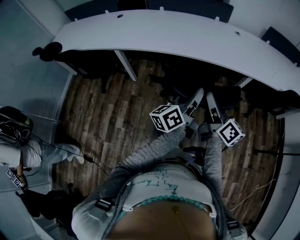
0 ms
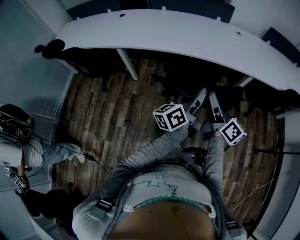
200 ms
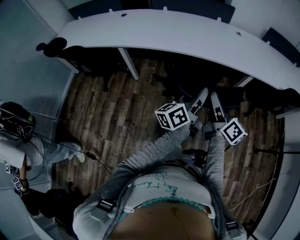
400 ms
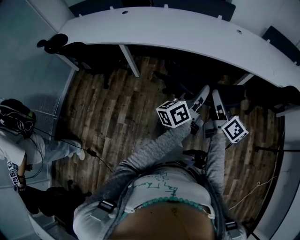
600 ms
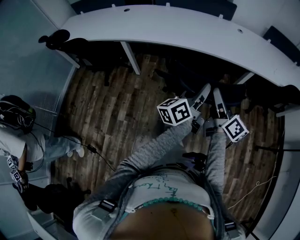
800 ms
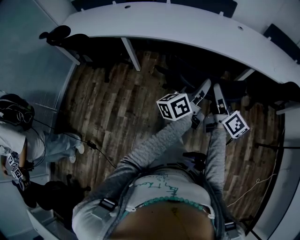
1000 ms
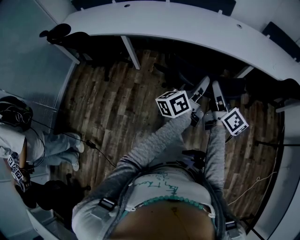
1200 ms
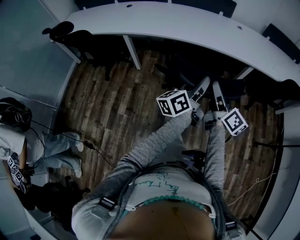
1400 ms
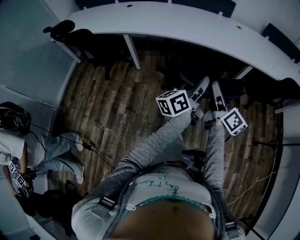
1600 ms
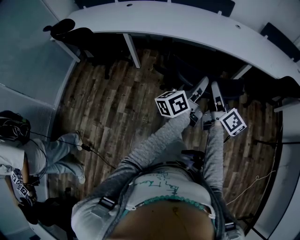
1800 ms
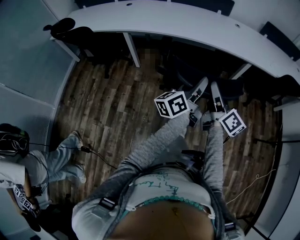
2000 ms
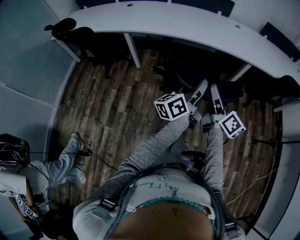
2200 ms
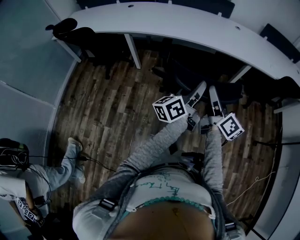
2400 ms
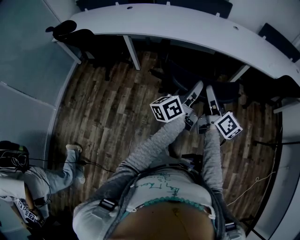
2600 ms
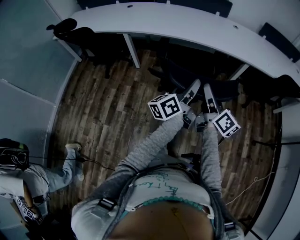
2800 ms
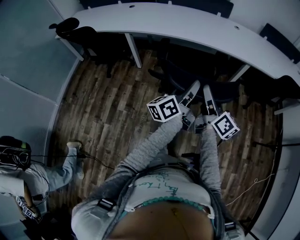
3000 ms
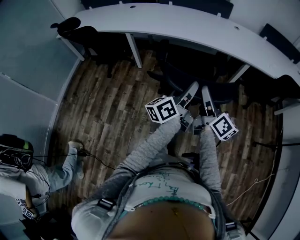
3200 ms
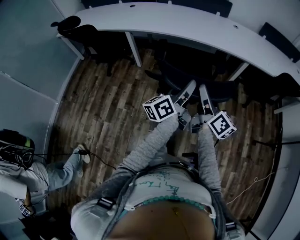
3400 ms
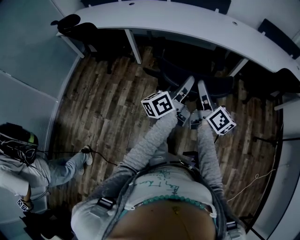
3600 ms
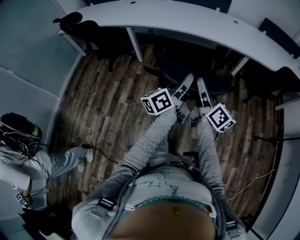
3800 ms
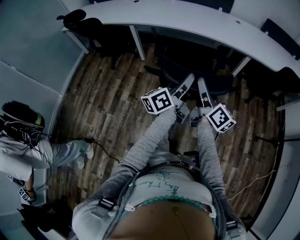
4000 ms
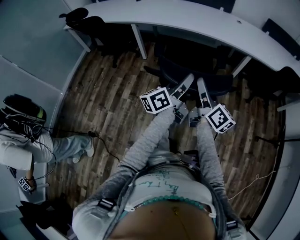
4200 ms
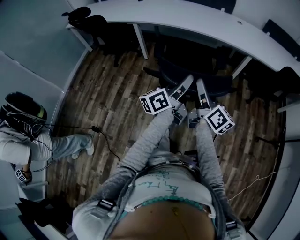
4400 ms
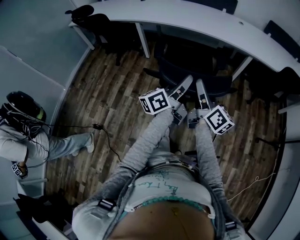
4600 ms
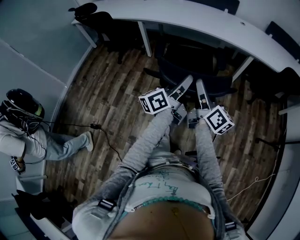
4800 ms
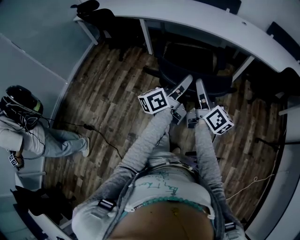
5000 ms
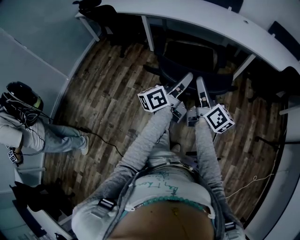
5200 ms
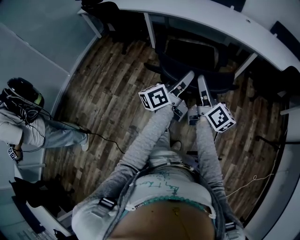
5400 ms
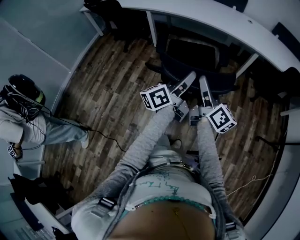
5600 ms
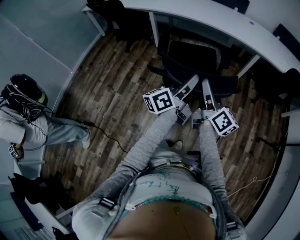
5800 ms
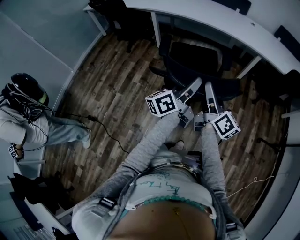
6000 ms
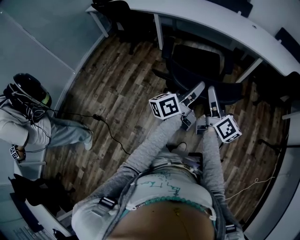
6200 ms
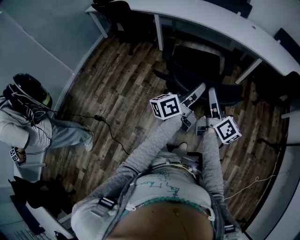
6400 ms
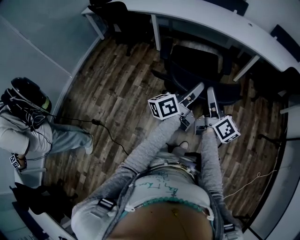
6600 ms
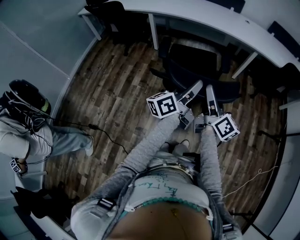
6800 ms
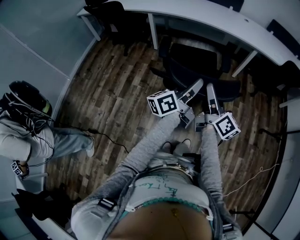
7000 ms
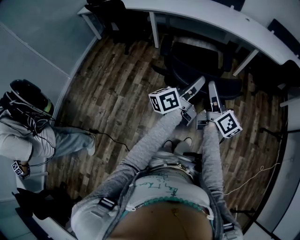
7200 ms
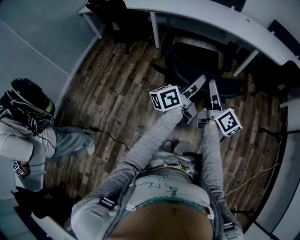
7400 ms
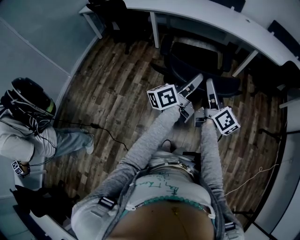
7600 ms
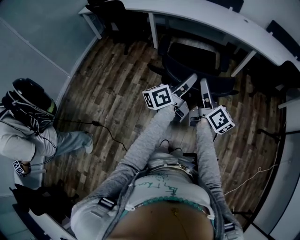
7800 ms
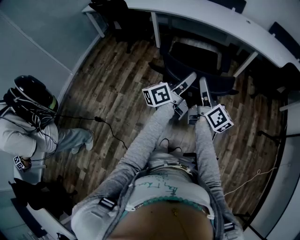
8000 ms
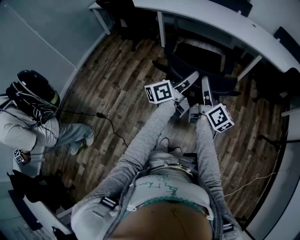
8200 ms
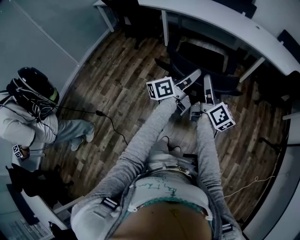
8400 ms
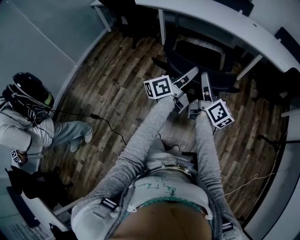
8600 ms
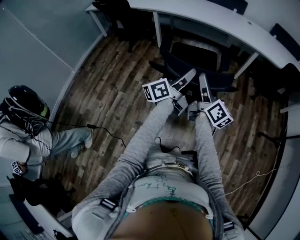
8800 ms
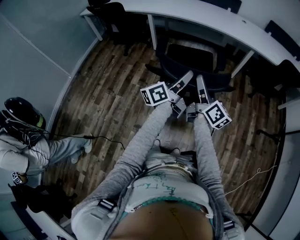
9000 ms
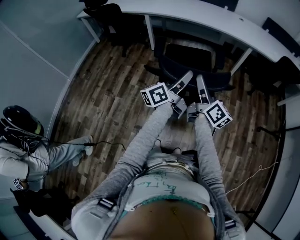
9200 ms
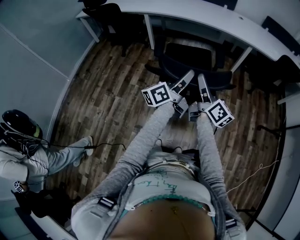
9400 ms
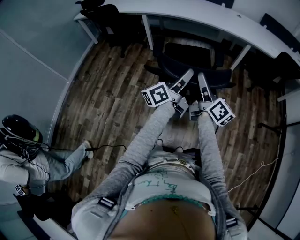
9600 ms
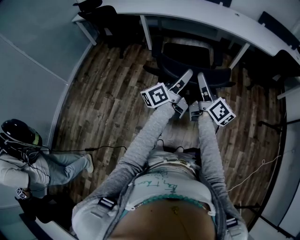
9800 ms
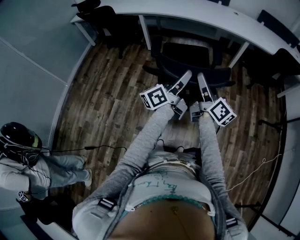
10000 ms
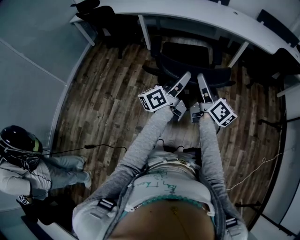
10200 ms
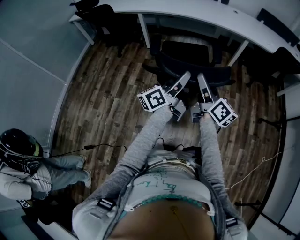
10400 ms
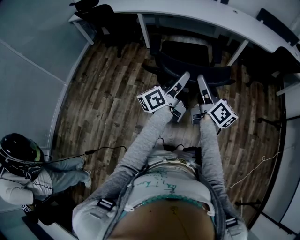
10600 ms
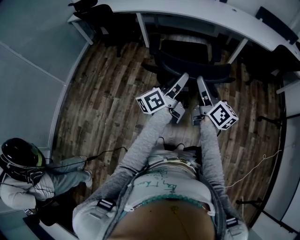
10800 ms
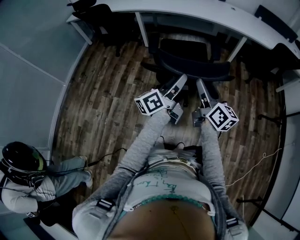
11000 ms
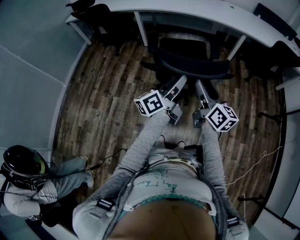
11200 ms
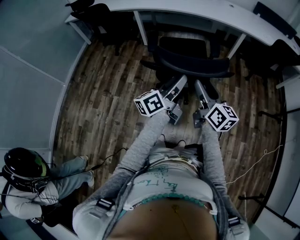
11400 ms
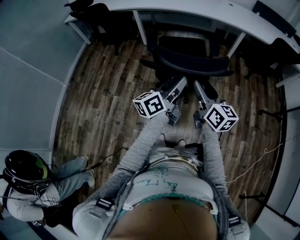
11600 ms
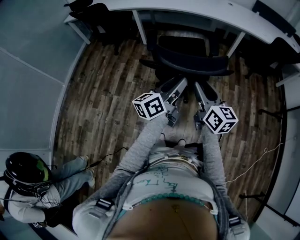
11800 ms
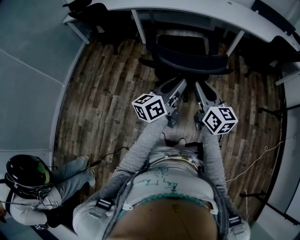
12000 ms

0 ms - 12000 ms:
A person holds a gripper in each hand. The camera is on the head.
0 ms - 1600 ms: Both grippers travel together backward, some 15 cm.
1600 ms - 3000 ms: Both grippers move backward, approximately 5 cm.
3000 ms - 4400 ms: The grippers both shift backward by about 10 cm.
4400 ms - 6000 ms: The two grippers go about 10 cm backward.
6000 ms - 7600 ms: The grippers both shift to the left and backward by approximately 10 cm.
7600 ms - 9000 ms: Both grippers stay put.
9000 ms - 10400 ms: Both grippers stay about where they are.
10400 ms - 12000 ms: The two grippers go roughly 5 cm backward. The right gripper changes its angle by some 30 degrees, and closes.

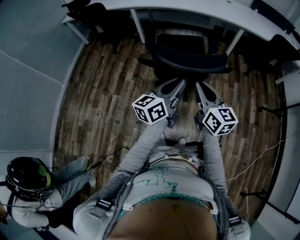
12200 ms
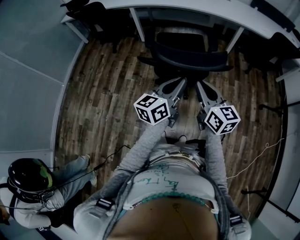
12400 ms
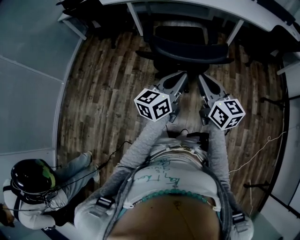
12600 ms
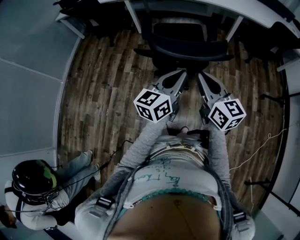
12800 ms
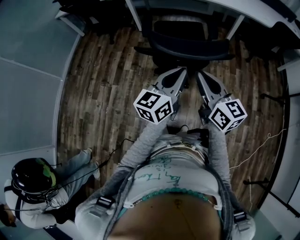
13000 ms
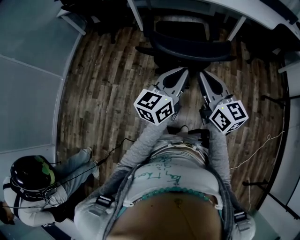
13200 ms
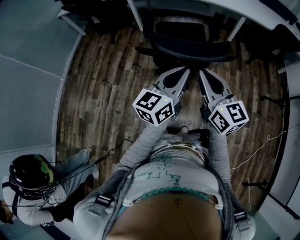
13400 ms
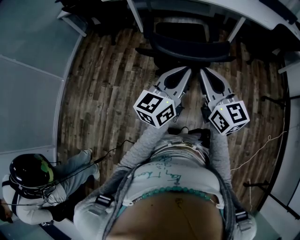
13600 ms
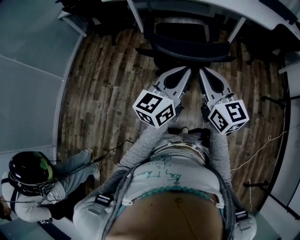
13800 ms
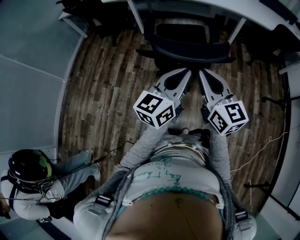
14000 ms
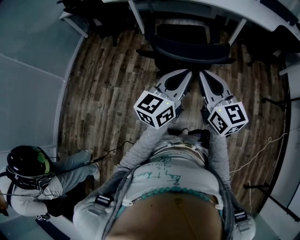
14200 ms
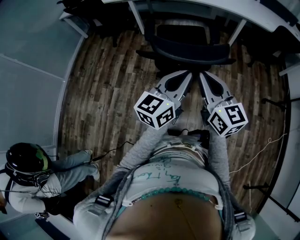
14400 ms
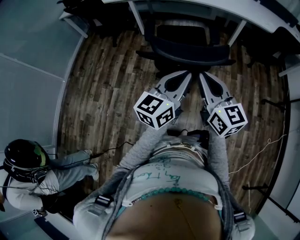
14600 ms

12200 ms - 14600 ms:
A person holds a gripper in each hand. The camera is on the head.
12200 ms - 13400 ms: The right gripper shifts by some 5 cm.
13400 ms - 14600 ms: Neither gripper changes place.

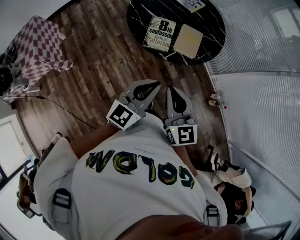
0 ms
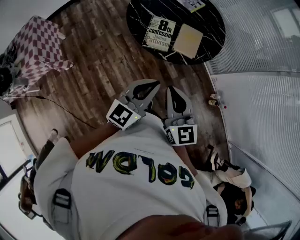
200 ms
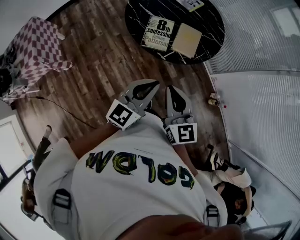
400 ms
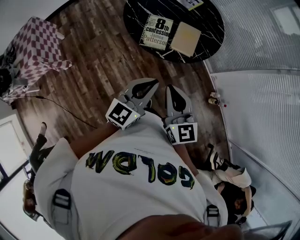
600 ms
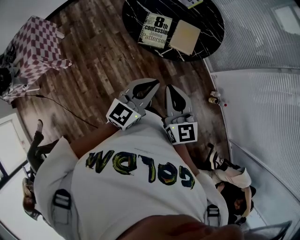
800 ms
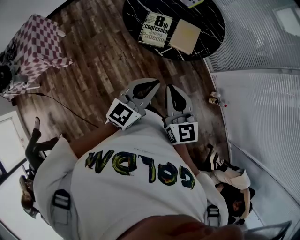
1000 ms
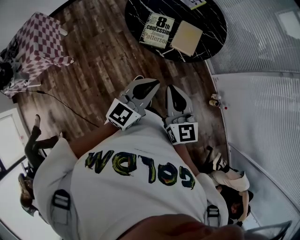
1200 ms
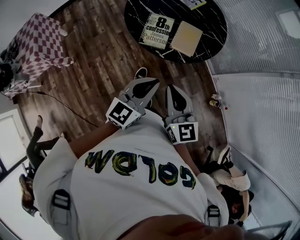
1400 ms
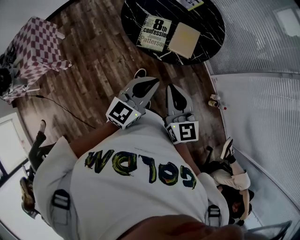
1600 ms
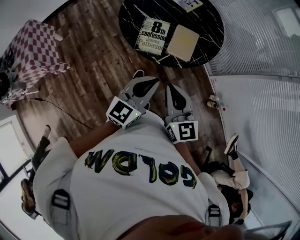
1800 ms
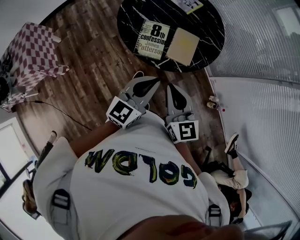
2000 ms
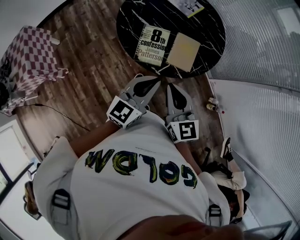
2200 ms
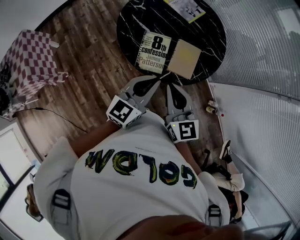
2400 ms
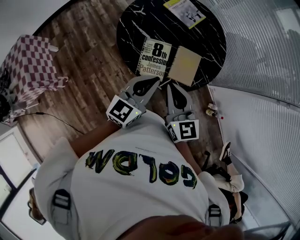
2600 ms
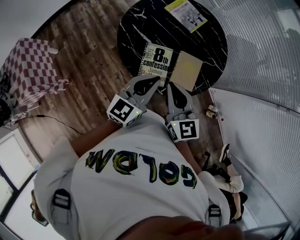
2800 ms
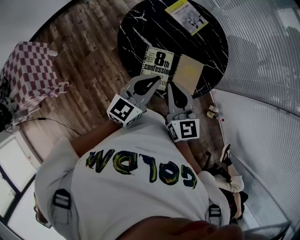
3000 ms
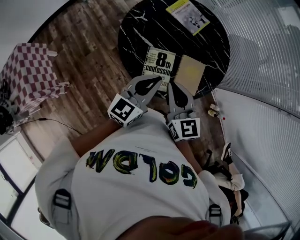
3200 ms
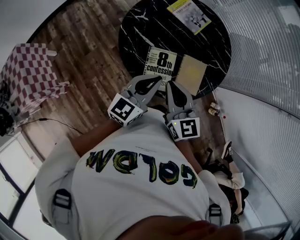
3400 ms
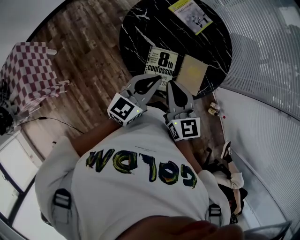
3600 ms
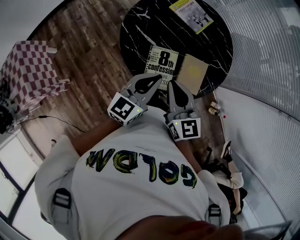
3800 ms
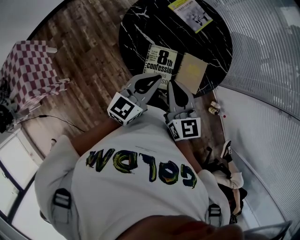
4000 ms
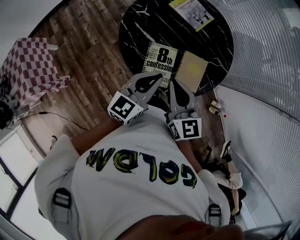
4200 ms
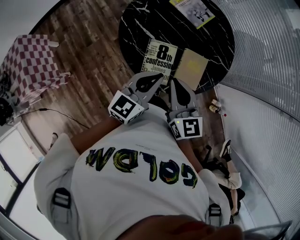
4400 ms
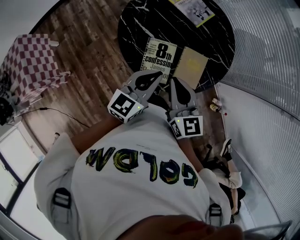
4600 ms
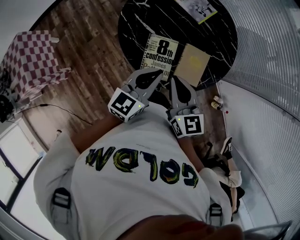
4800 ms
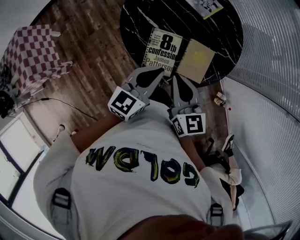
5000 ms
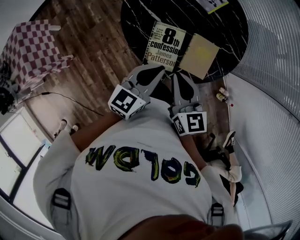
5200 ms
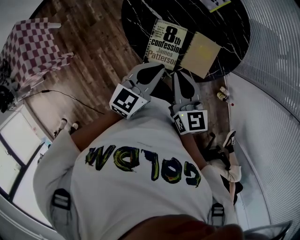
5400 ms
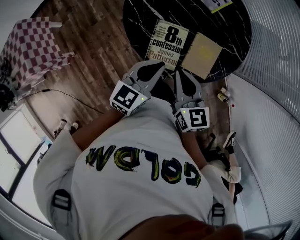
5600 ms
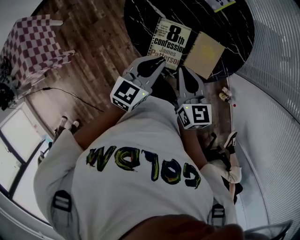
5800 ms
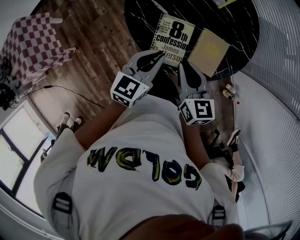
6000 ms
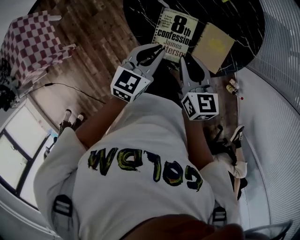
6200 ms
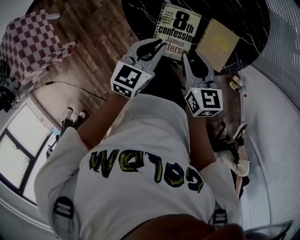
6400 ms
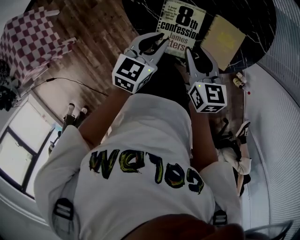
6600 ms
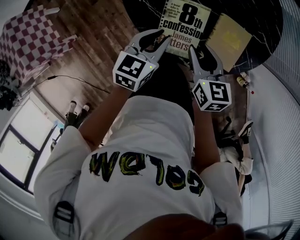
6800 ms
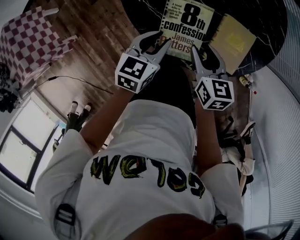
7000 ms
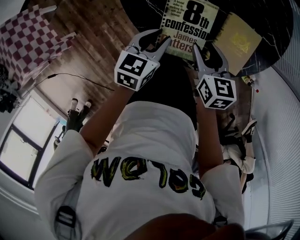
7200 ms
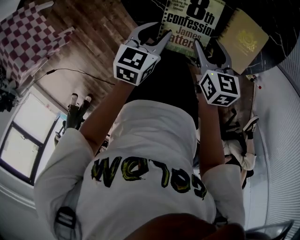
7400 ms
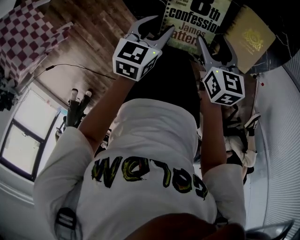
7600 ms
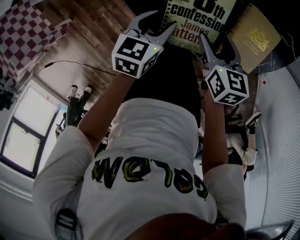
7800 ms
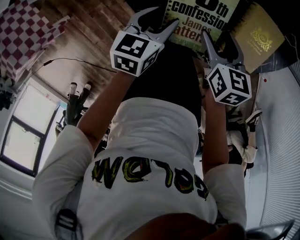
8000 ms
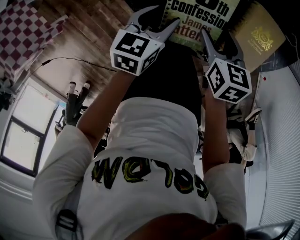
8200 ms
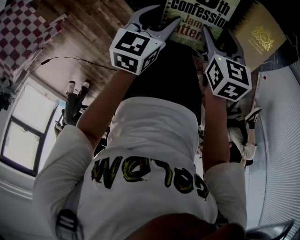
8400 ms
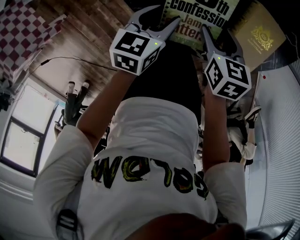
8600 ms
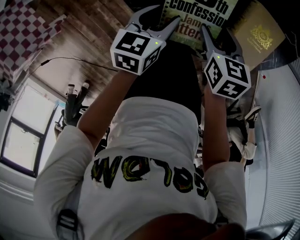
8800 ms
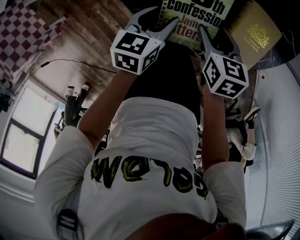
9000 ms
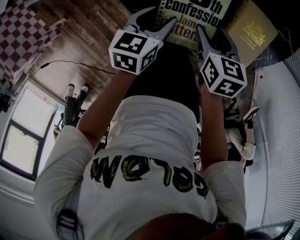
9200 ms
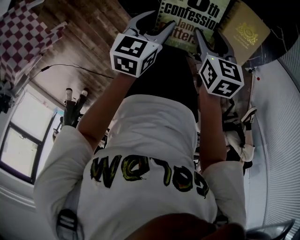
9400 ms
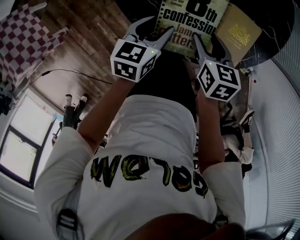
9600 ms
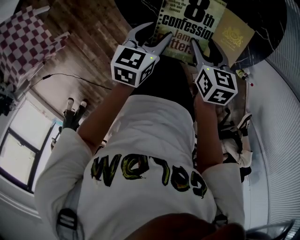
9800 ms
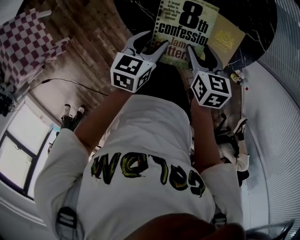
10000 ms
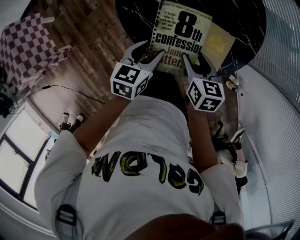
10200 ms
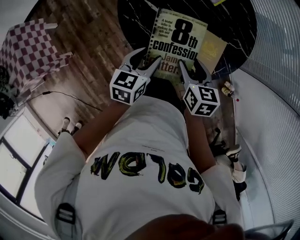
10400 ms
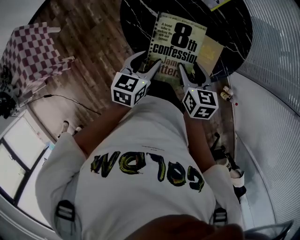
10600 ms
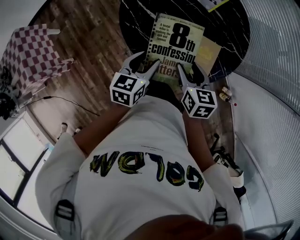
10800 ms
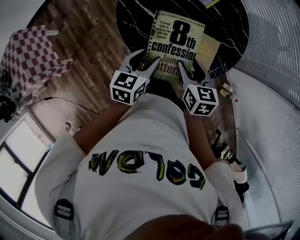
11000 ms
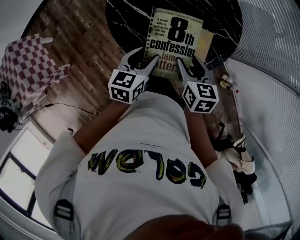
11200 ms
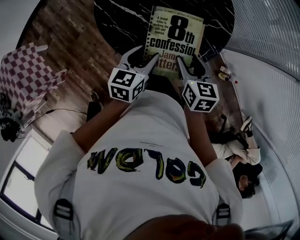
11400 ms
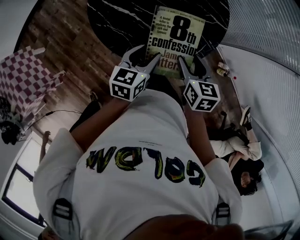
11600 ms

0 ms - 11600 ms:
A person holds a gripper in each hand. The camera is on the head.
0 ms - 1400 ms: The grippers make only small movements.
1400 ms - 2800 ms: The grippers both shift forward by approximately 25 cm.
4400 ms - 5800 ms: The grippers both shift downward by roughly 10 cm.
5800 ms - 7200 ms: The grippers both shift downward by about 20 cm. The left gripper changes its angle by roughly 20 degrees, and opens, while the right gripper opens up.
7200 ms - 8800 ms: Both grippers travel together downward, some 5 cm. The left gripper opens up.
8800 ms - 10200 ms: The grippers both shift upward by some 15 cm.
10200 ms - 11600 ms: Both grippers travel together to the right, about 15 cm.
